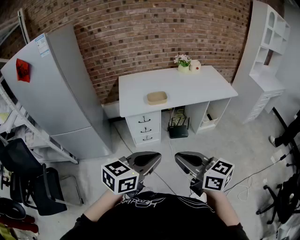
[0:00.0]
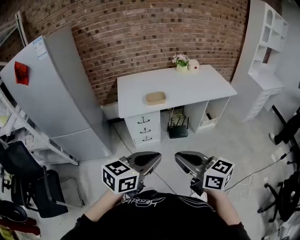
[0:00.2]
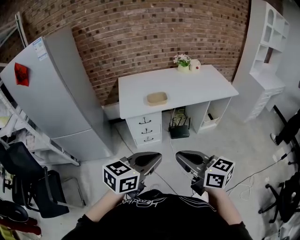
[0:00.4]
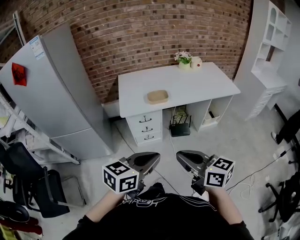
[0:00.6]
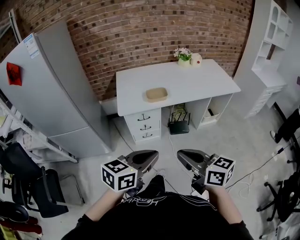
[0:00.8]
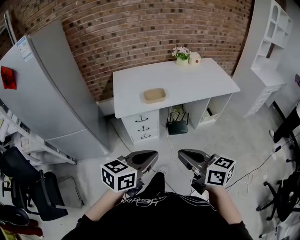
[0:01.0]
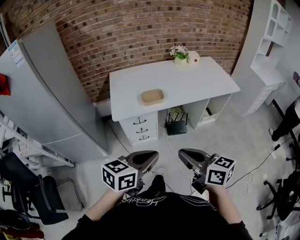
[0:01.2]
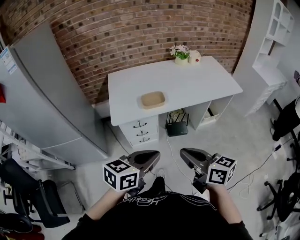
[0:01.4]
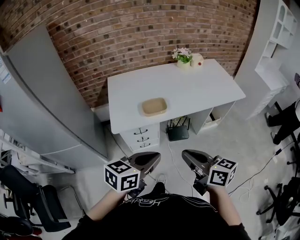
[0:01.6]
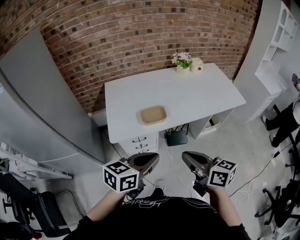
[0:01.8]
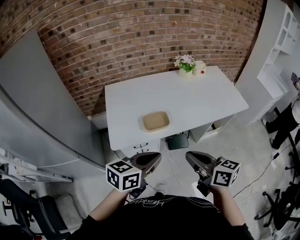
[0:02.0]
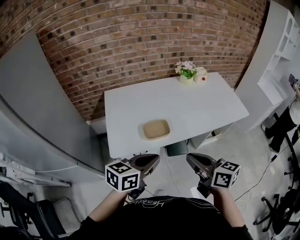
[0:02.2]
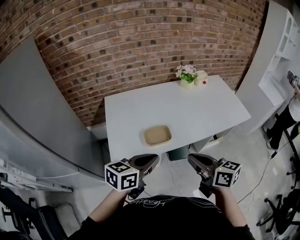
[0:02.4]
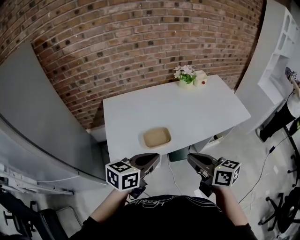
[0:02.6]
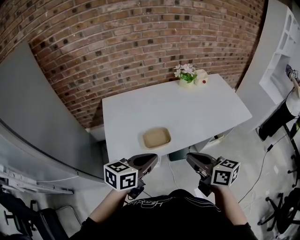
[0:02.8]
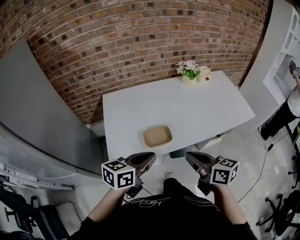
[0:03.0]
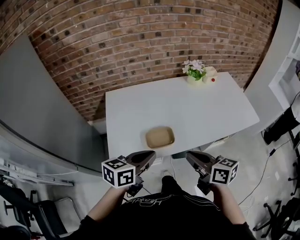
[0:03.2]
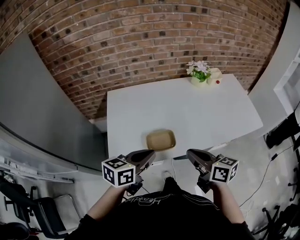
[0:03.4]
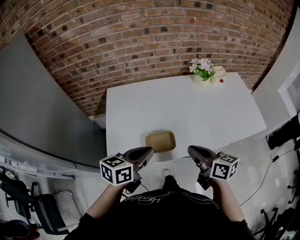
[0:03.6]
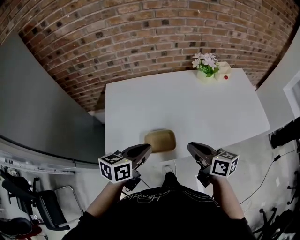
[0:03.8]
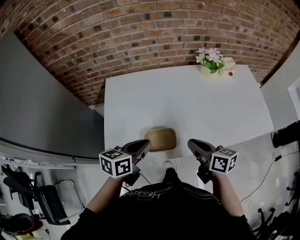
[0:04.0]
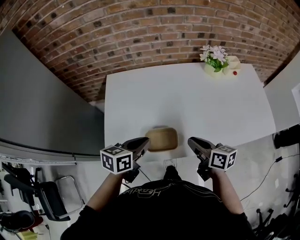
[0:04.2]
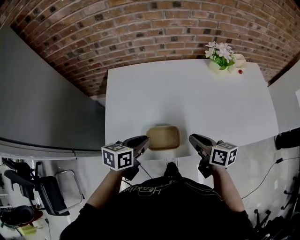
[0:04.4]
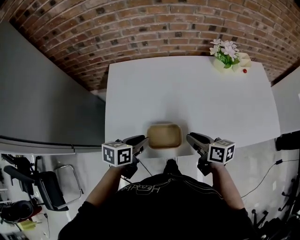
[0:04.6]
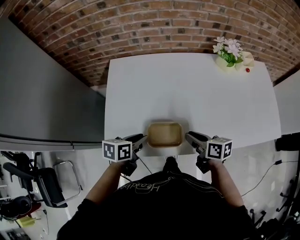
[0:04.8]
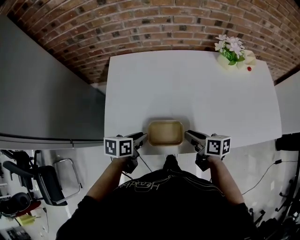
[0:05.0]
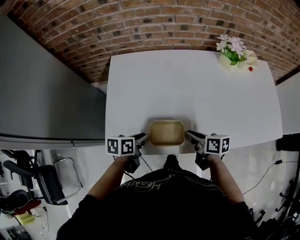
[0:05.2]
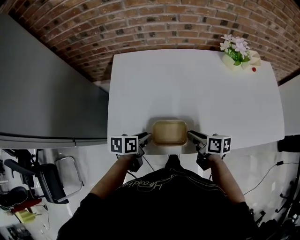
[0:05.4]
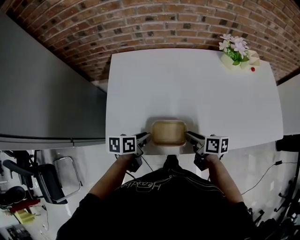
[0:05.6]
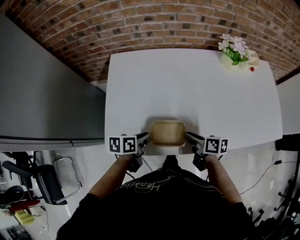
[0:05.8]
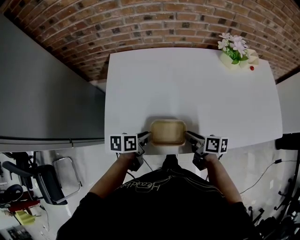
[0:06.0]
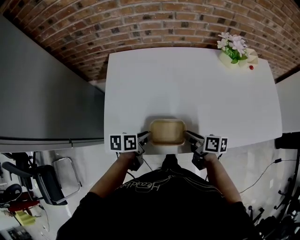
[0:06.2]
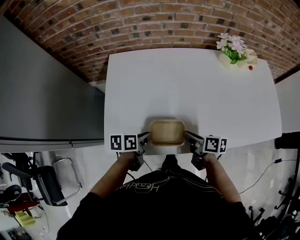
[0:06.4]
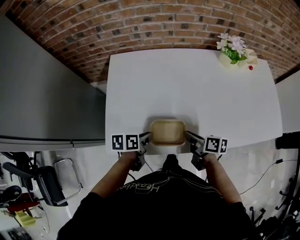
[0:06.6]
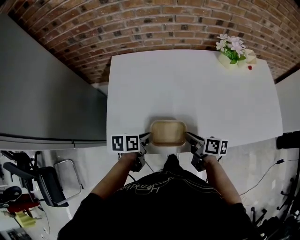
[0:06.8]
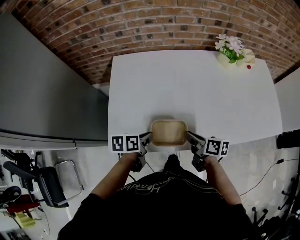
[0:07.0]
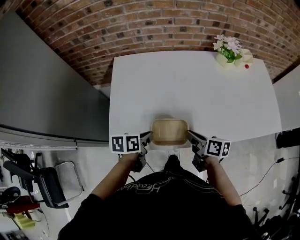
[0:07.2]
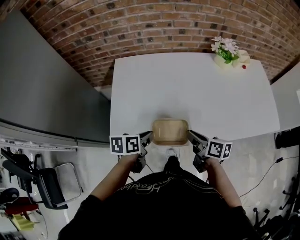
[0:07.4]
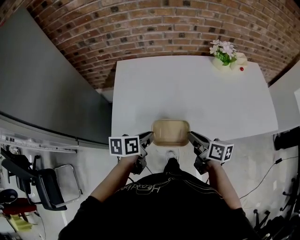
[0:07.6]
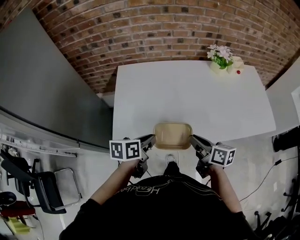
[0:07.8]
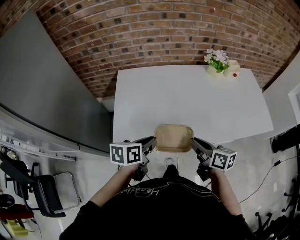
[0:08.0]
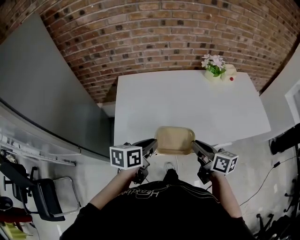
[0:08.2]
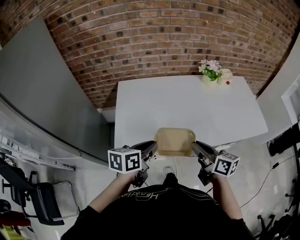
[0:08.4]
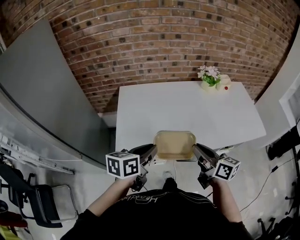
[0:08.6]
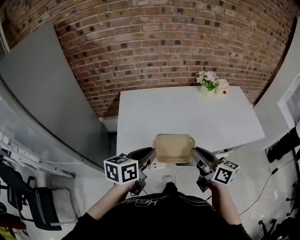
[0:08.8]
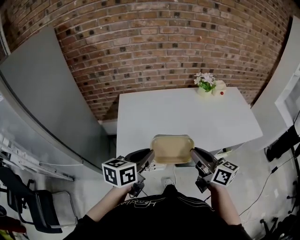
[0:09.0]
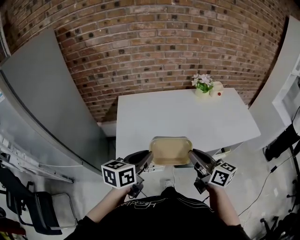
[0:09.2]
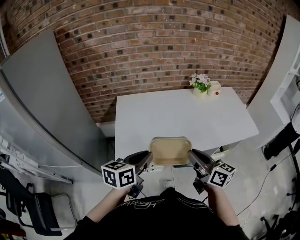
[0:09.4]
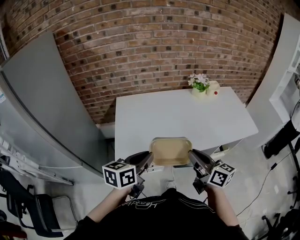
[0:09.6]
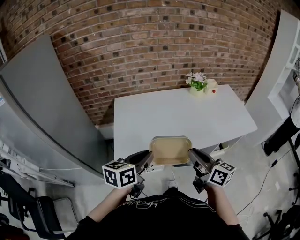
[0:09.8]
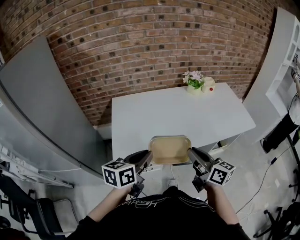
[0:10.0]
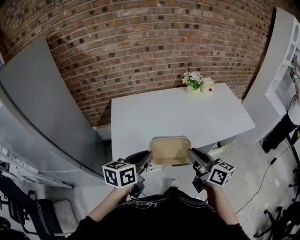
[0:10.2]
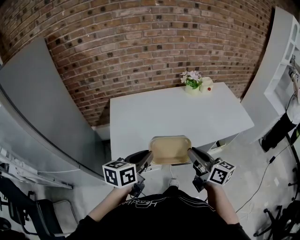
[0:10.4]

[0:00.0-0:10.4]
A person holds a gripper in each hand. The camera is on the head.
0:00.0 to 0:01.4: The two grippers go some 15 cm forward.
0:01.4 to 0:03.0: The grippers both shift forward by roughly 25 cm.
0:03.0 to 0:04.4: Both grippers move forward and downward, about 20 cm. The left gripper changes its angle by some 20 degrees.
0:04.4 to 0:06.0: The two grippers go approximately 10 cm downward. The left gripper changes its angle by about 20 degrees.
0:06.0 to 0:07.4: The grippers both shift upward by about 5 cm.
0:07.4 to 0:09.0: Both grippers travel together upward and backward, about 20 cm. The left gripper swivels roughly 30 degrees. The right gripper swivels roughly 30 degrees.
0:09.0 to 0:10.4: There are only small adjustments of the grippers.

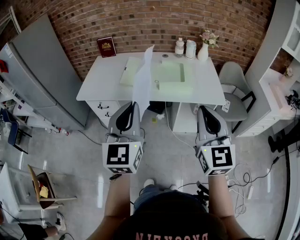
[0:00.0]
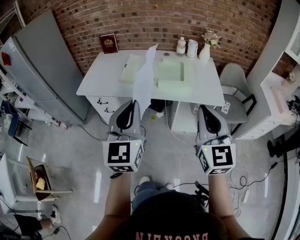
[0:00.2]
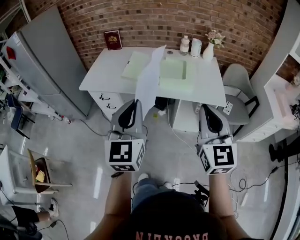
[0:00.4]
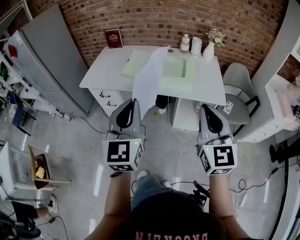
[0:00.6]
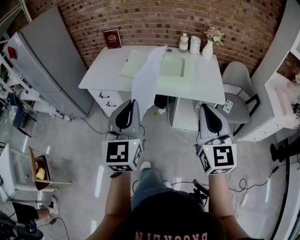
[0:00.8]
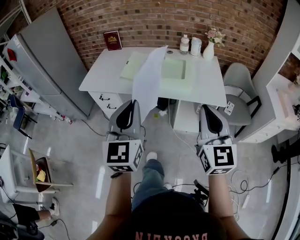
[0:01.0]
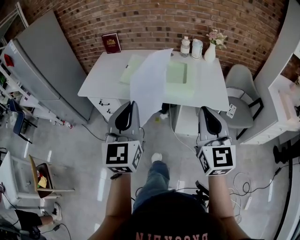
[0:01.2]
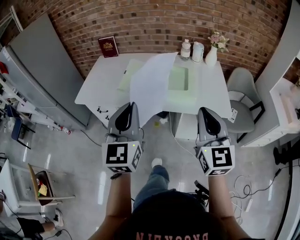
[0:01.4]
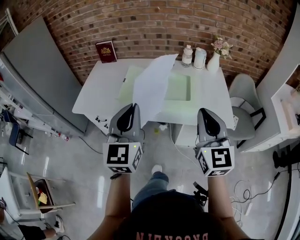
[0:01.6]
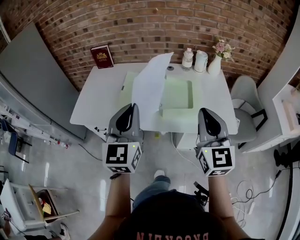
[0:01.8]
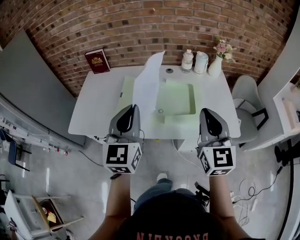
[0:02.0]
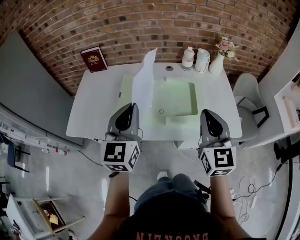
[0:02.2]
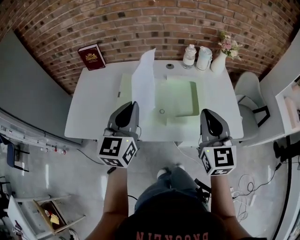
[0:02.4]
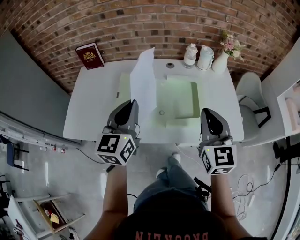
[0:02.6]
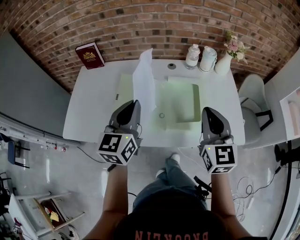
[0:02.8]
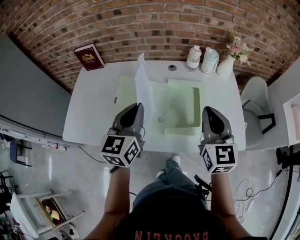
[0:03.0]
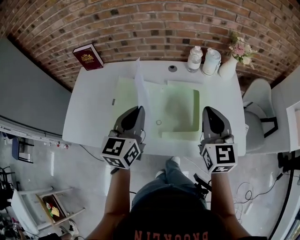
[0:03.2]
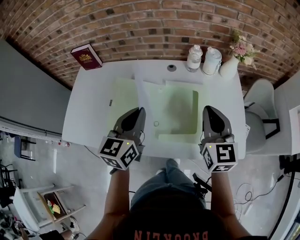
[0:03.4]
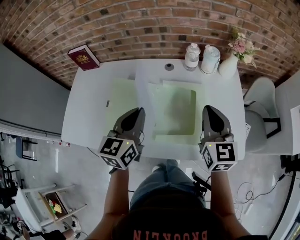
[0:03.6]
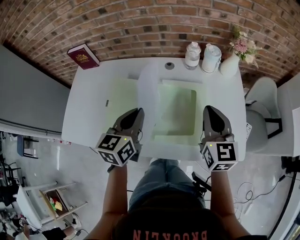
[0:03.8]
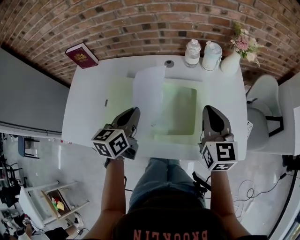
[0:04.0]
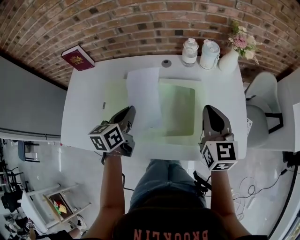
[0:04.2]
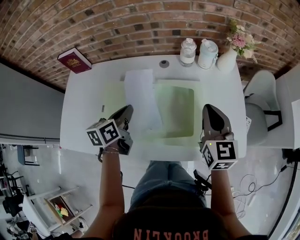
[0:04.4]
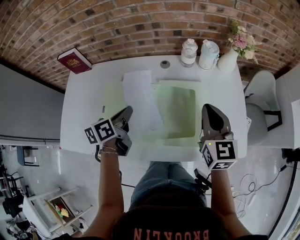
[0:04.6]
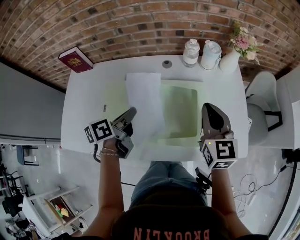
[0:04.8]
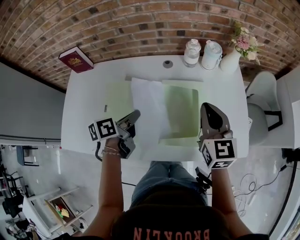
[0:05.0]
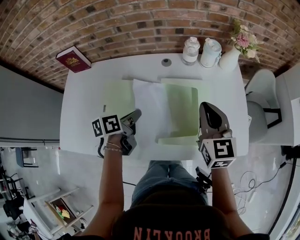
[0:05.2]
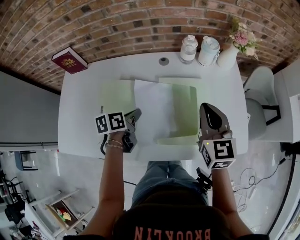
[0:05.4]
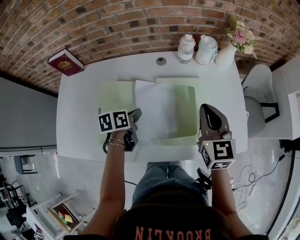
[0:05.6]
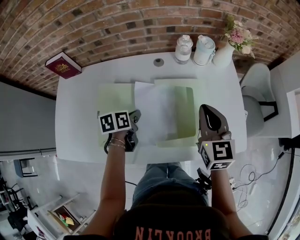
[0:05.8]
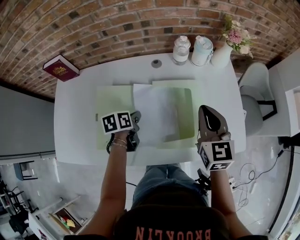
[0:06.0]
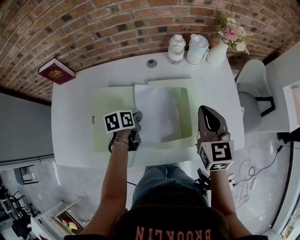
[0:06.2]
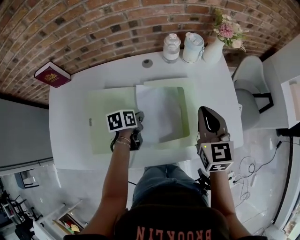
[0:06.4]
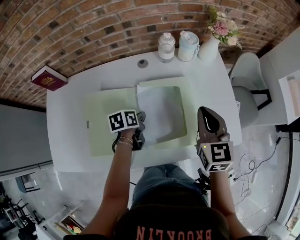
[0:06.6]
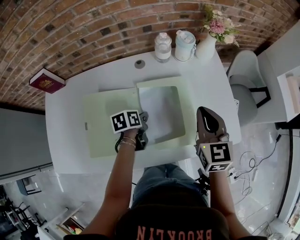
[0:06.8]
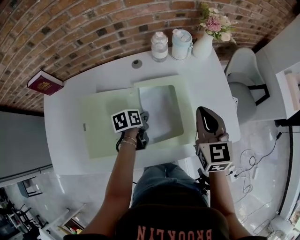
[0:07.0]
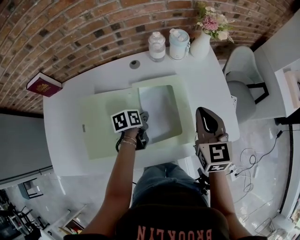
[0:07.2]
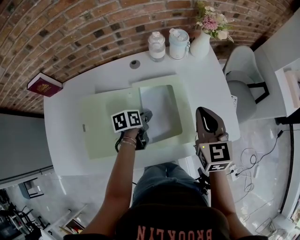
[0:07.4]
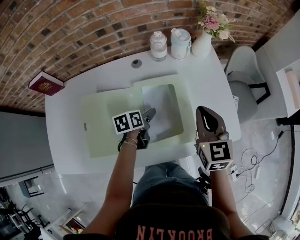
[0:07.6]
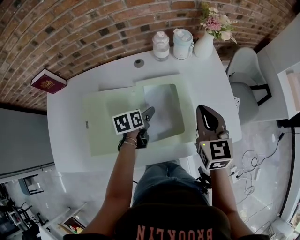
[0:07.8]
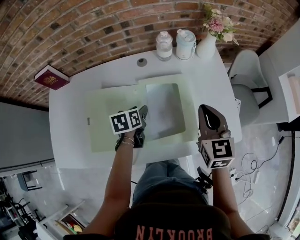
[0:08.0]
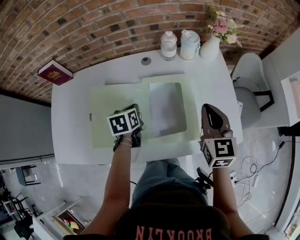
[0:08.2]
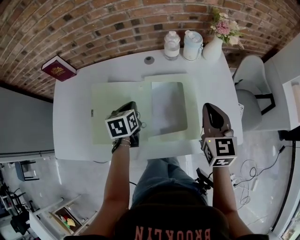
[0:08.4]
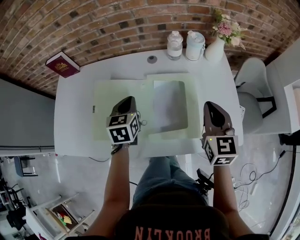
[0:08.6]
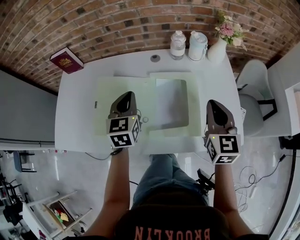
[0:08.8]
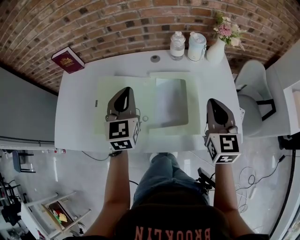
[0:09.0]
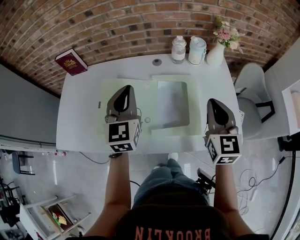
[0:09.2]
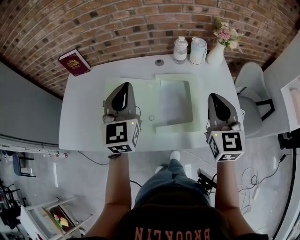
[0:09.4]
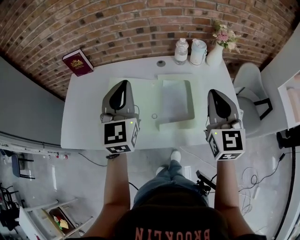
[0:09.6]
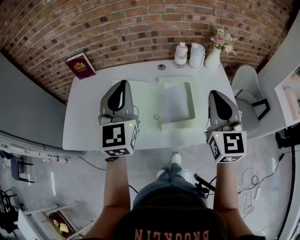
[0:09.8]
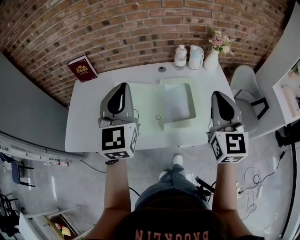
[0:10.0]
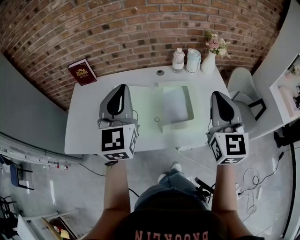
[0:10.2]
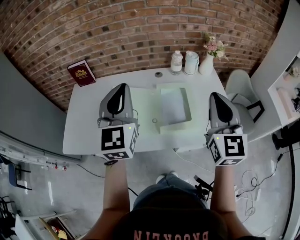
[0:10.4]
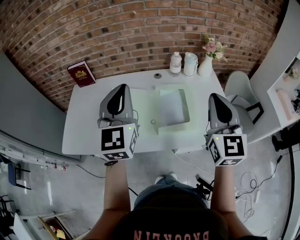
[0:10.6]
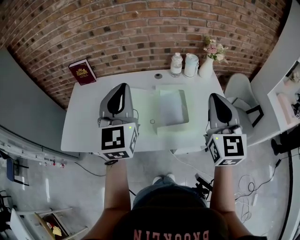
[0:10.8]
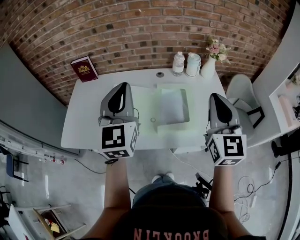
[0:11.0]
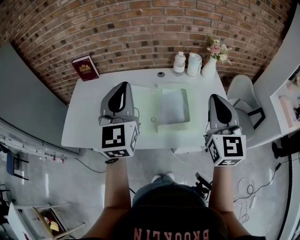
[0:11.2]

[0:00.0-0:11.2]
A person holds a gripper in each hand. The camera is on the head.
0:00.0 to 0:01.6: The two grippers go some 15 cm forward.
0:01.6 to 0:03.2: The two grippers go roughly 30 cm forward. The left gripper turns by approximately 20 degrees.
0:03.2 to 0:04.8: The right gripper is displaced forward by some 5 cm. The left gripper goes about 15 cm downward and forward, and twists some 50 degrees counterclockwise, seen from behind.
0:04.8 to 0:06.4: The left gripper travels downward by some 15 cm, and turns by approximately 30 degrees.
0:06.4 to 0:08.0: The left gripper opens.
0:08.0 to 0:09.6: The left gripper heads upward, covering some 30 cm, angles its fingers upward, by roughly 50 degrees, and closes its fingers; the right gripper heads upward and backward, covering some 15 cm.
0:09.6 to 0:11.2: The right gripper heads backward and upward, covering about 10 cm, while the left gripper goes some 10 cm upward and backward.

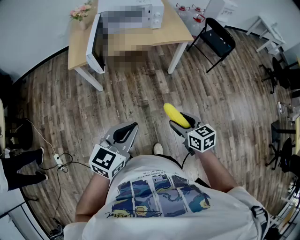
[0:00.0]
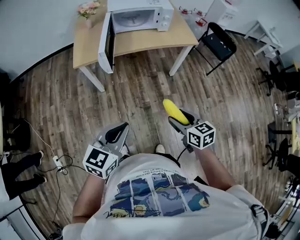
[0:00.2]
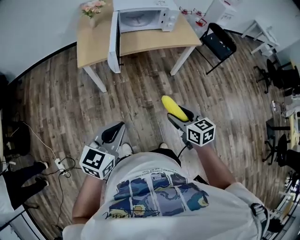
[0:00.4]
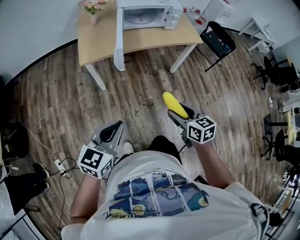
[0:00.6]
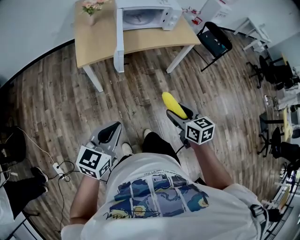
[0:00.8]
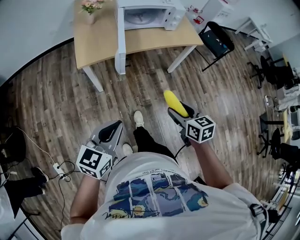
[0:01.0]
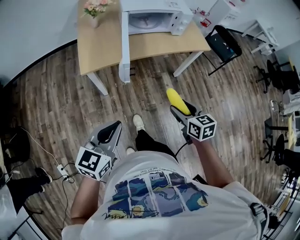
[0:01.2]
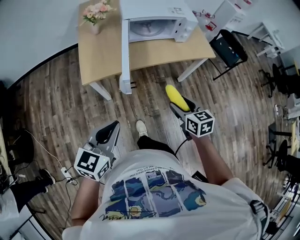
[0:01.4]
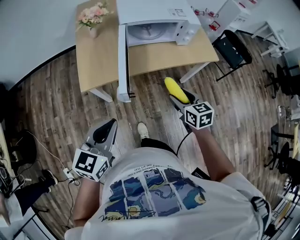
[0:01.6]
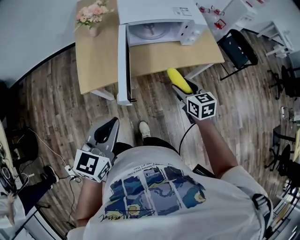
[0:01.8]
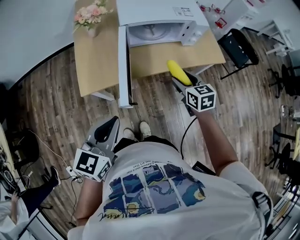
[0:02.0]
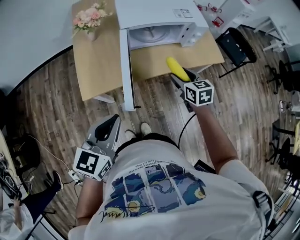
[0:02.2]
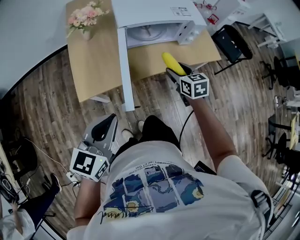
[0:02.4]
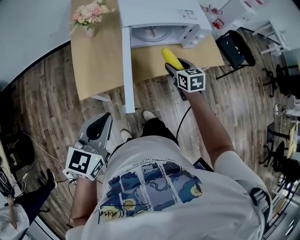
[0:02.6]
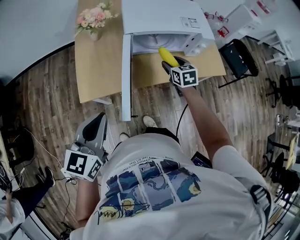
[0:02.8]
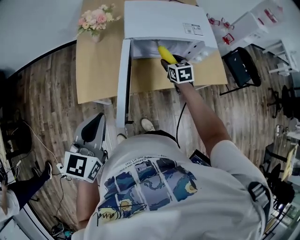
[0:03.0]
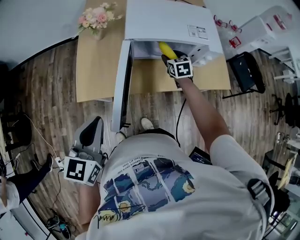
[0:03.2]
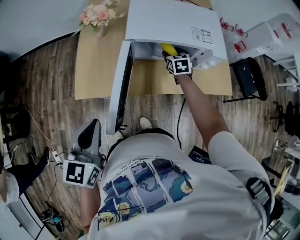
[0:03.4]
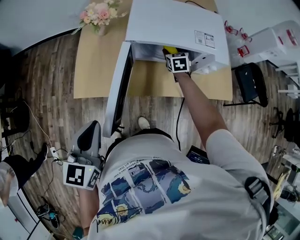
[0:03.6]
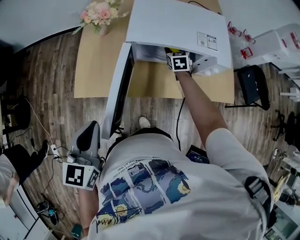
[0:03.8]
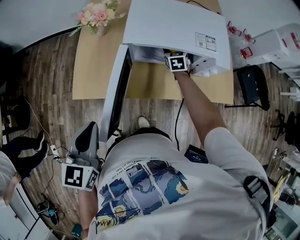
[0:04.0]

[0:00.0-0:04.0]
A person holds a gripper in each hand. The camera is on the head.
0:00.0 to 0:01.4: The right gripper travels forward and to the left by about 30 cm, while the left gripper goes approximately 30 cm to the left and forward.
0:01.4 to 0:02.6: The left gripper shifts some 15 cm forward. The right gripper moves forward, some 30 cm.
0:02.6 to 0:04.0: The right gripper shifts roughly 25 cm forward; the left gripper shifts about 5 cm forward, and rotates about 30 degrees.
